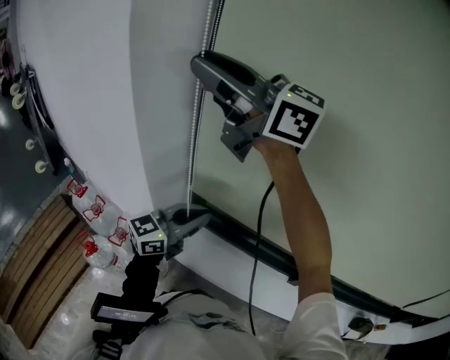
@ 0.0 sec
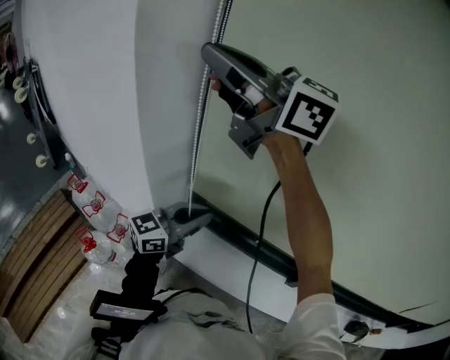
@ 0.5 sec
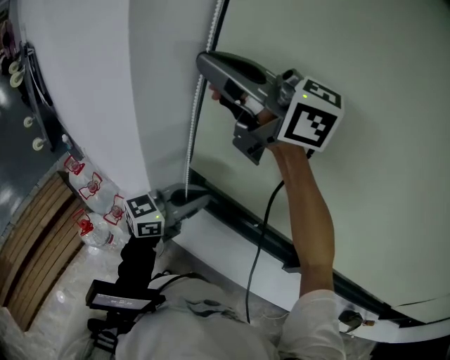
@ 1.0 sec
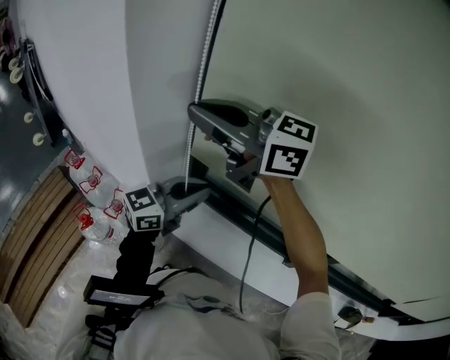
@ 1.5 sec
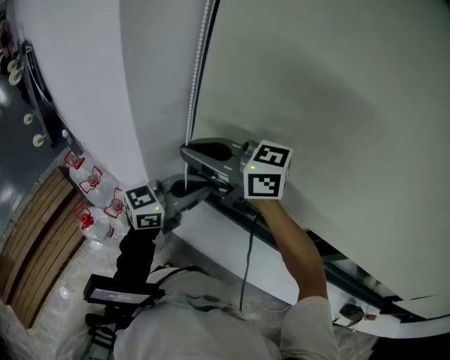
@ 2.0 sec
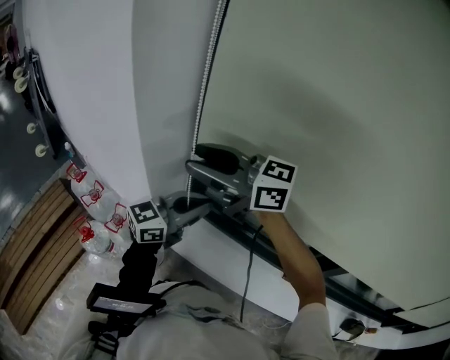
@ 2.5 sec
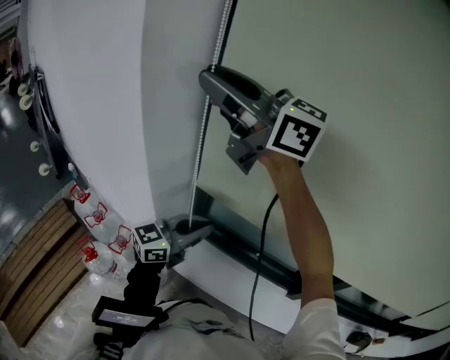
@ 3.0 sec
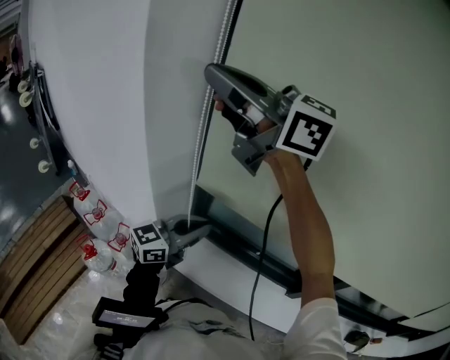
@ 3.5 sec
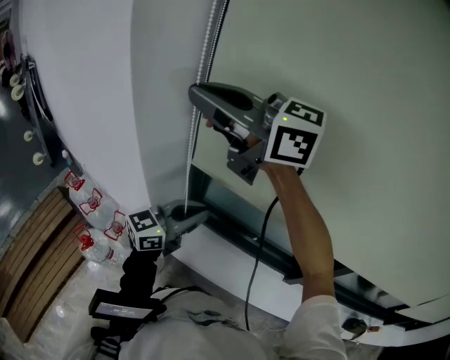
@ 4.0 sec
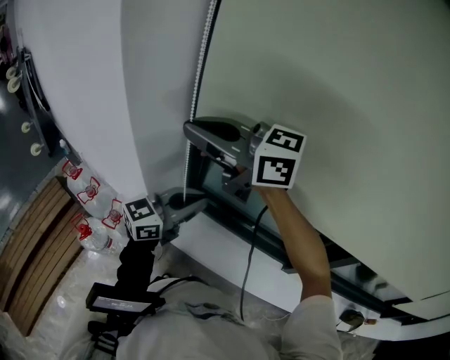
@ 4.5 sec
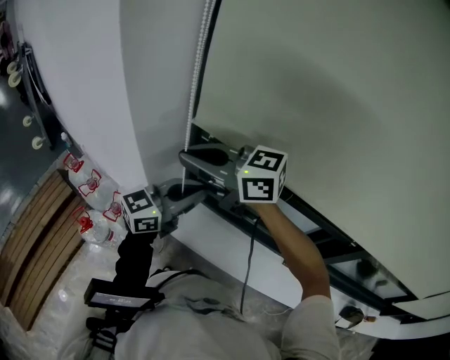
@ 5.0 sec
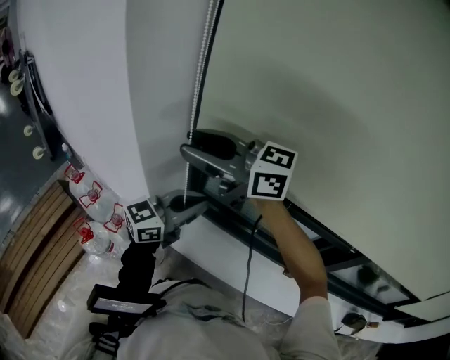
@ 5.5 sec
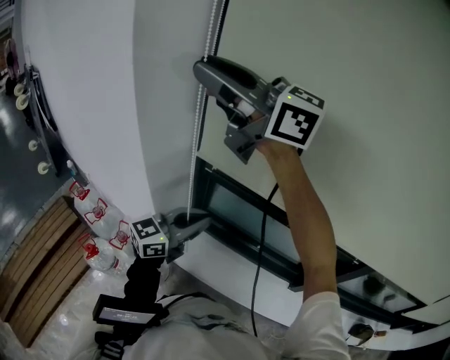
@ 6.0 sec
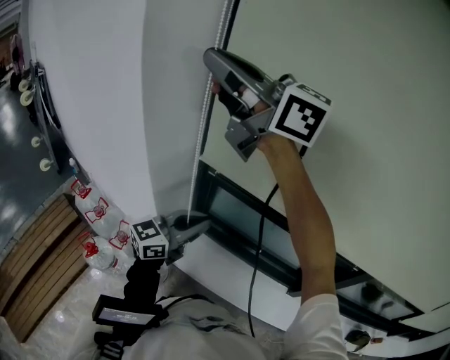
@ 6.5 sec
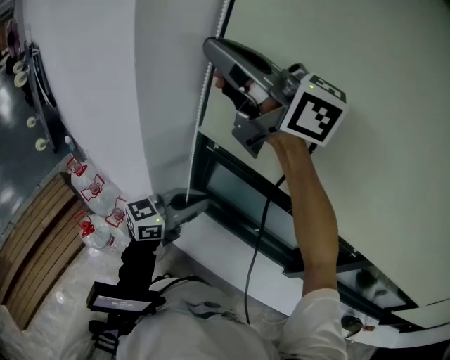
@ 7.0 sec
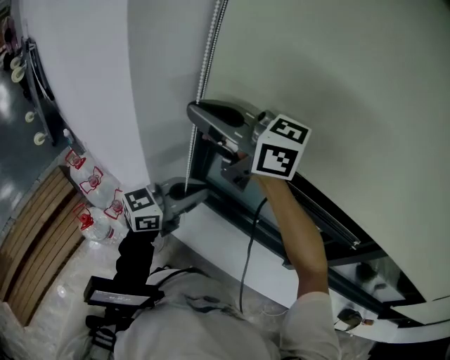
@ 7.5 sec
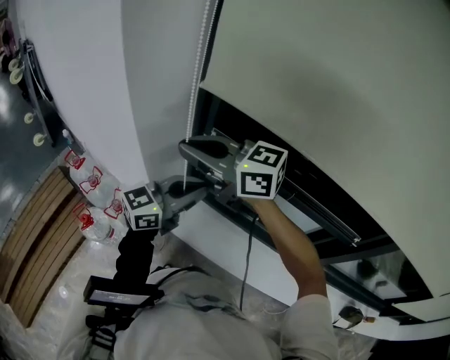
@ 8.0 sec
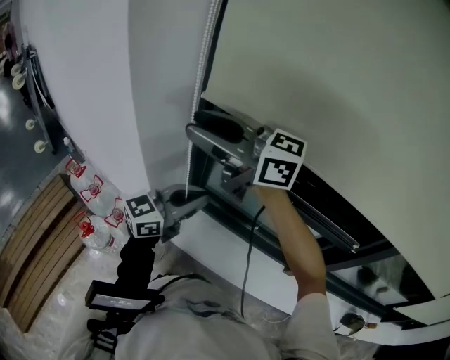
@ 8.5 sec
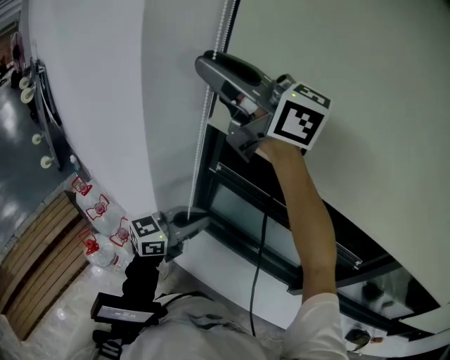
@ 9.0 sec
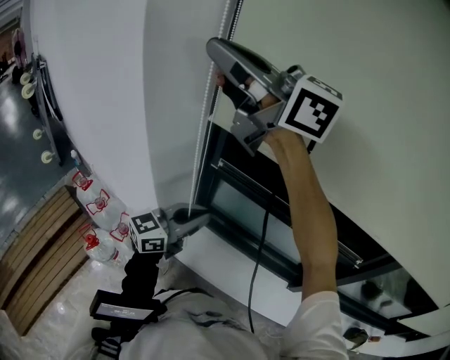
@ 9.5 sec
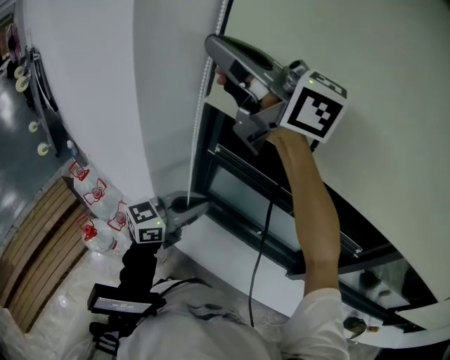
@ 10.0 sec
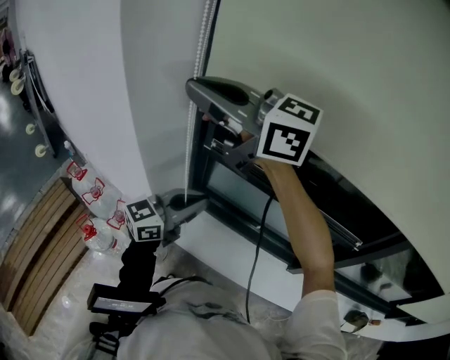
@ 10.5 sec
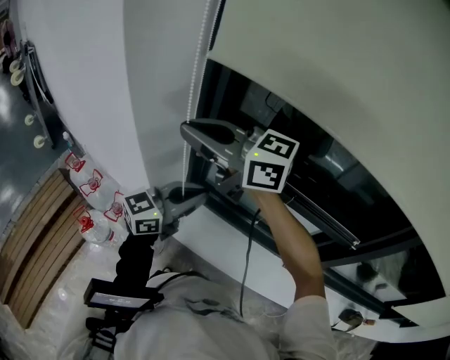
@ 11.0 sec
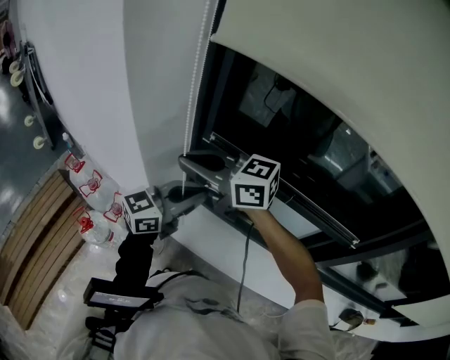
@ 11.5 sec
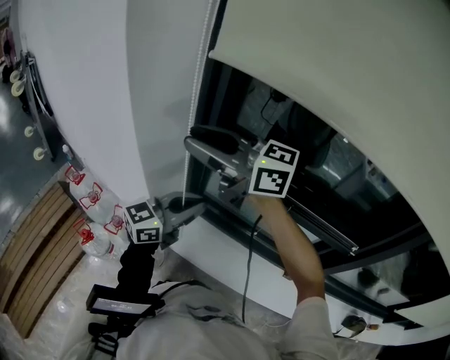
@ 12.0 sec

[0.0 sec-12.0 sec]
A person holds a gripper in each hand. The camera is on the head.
0.0 sec to 2.0 sec: The right gripper travels downward by some 25 cm, swivels about 30 degrees, and closes up.
2.0 sec to 4.0 sec: The right gripper is displaced upward by roughly 15 cm, and opens, then closes again.
4.0 sec to 6.0 sec: The right gripper goes downward and returns, approximately 20 cm each way, and opens up.
6.0 sec to 8.0 sec: The right gripper heads downward, covering approximately 25 cm, rotates roughly 20 degrees, and closes up.
8.0 sec to 10.0 sec: The right gripper shifts roughly 25 cm upward, swivels approximately 20 degrees, and opens, then closes again.
10.0 sec to 12.0 sec: The right gripper shifts roughly 15 cm downward, and opens.

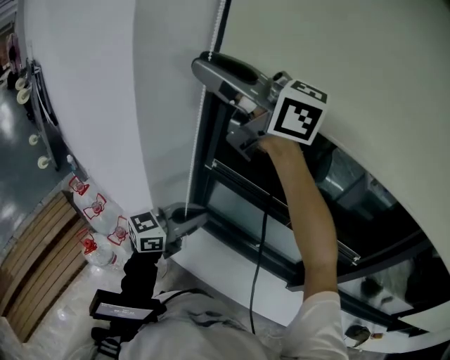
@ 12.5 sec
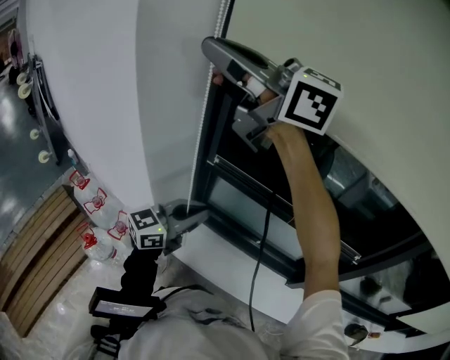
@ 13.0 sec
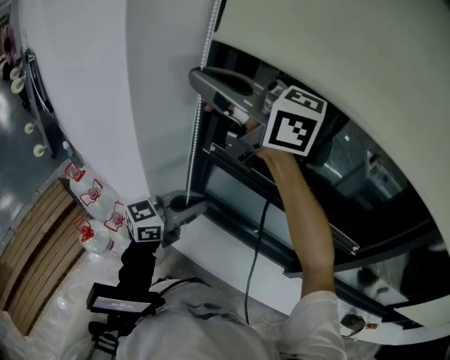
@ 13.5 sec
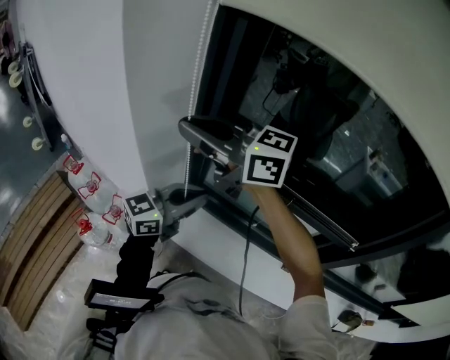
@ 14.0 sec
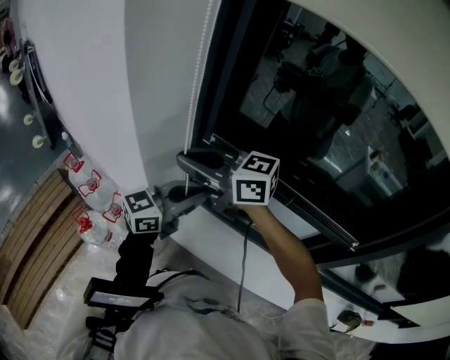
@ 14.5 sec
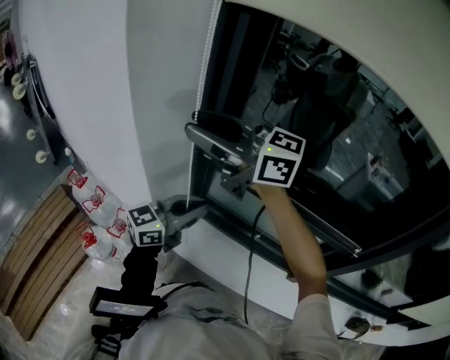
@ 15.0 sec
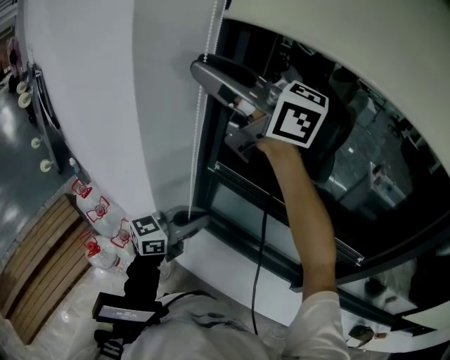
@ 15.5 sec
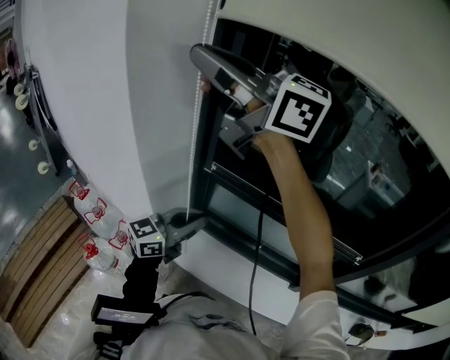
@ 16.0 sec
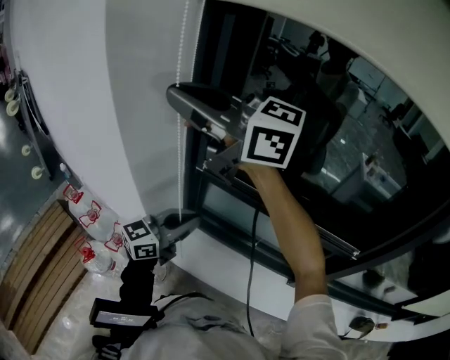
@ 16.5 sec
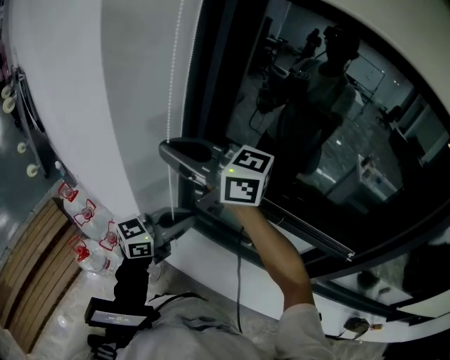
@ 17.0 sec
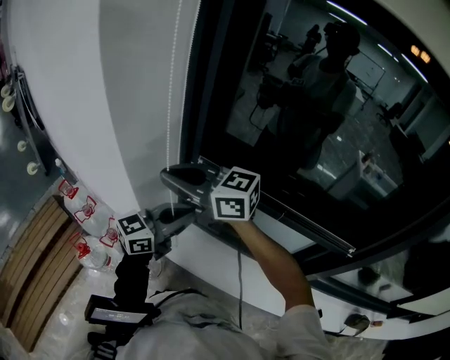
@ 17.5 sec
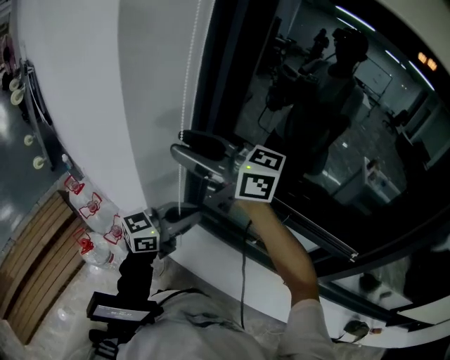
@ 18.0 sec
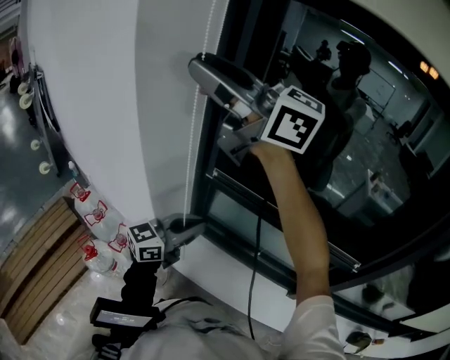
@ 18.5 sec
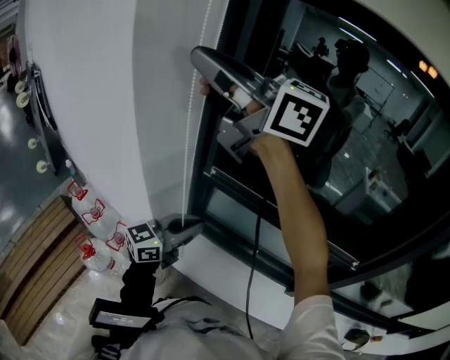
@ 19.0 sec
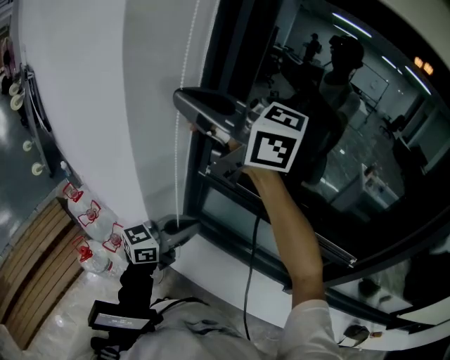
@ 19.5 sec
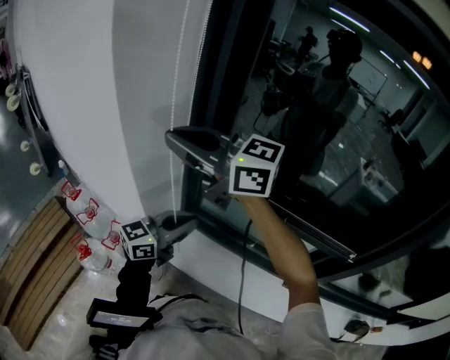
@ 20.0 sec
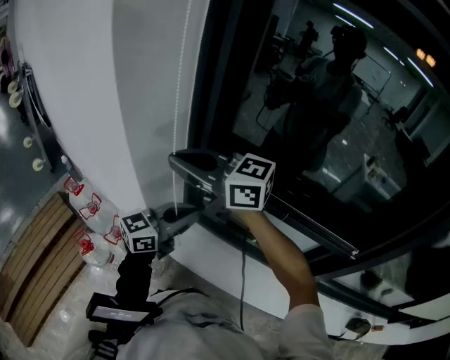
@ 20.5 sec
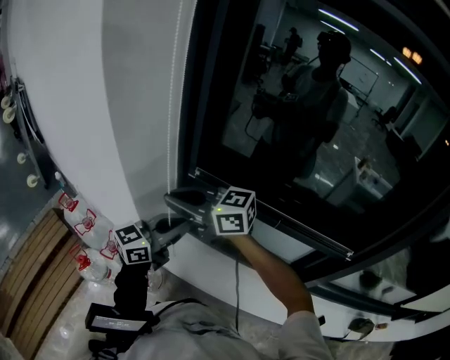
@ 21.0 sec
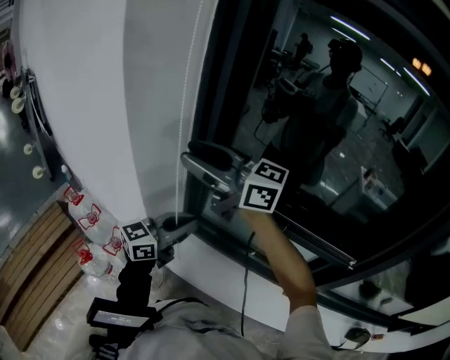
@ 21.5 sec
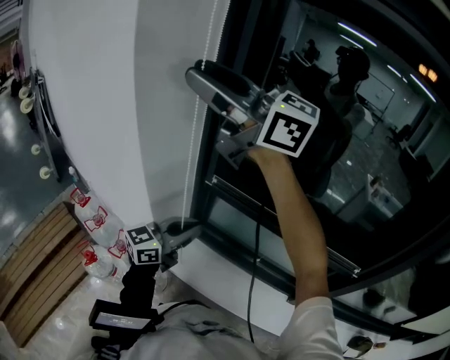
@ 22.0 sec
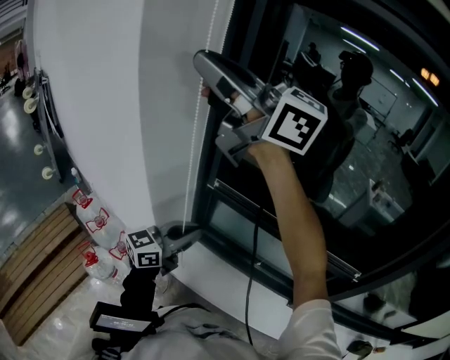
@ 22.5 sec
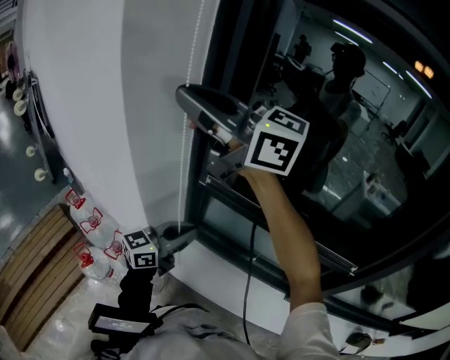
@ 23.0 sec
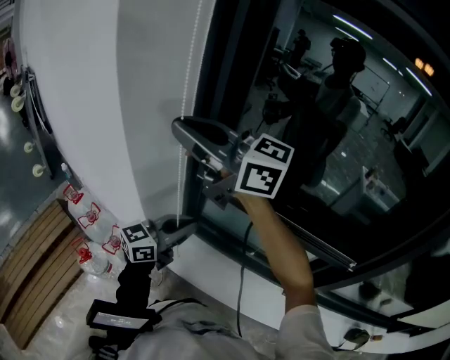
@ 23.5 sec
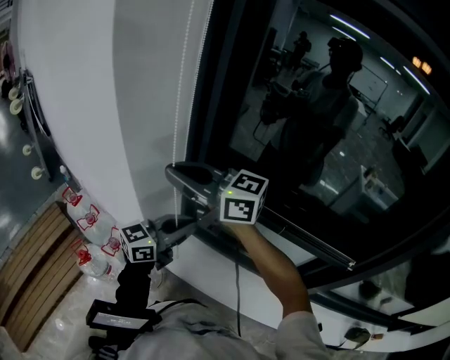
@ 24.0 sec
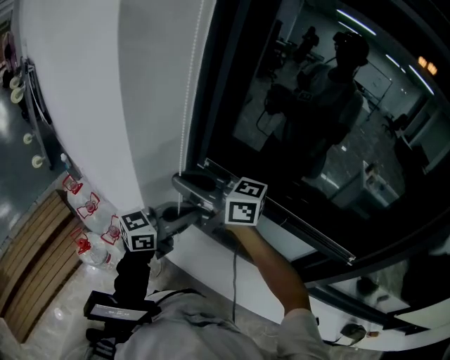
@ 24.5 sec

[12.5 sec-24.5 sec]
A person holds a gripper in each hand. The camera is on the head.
12.5 sec to 14.5 sec: The right gripper moves downward, some 25 cm, swivels roughly 20 degrees, and closes its fingers.
14.5 sec to 16.5 sec: The right gripper goes about 20 cm upward, rotates roughly 20 degrees, and opens and closes again.
16.5 sec to 18.5 sec: The right gripper goes downward and returns, some 20 cm each way, and opens.
18.5 sec to 20.5 sec: The right gripper is displaced downward by some 20 cm, swivels approximately 20 degrees, and closes its fingers.
20.5 sec to 22.5 sec: The right gripper is displaced upward by about 25 cm, rotates some 20 degrees, and opens, then closes once more.
22.5 sec to 24.5 sec: The right gripper heads downward, covering some 30 cm, and rotates roughly 30 degrees.

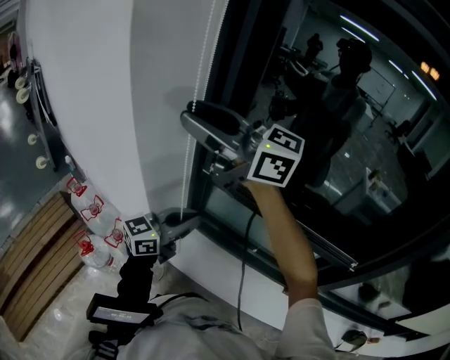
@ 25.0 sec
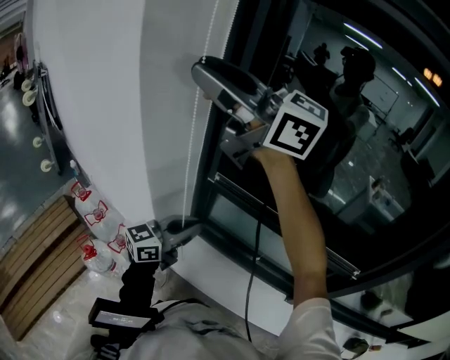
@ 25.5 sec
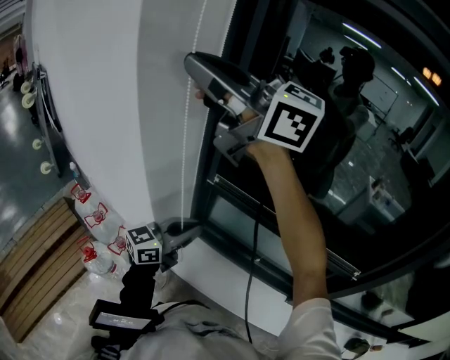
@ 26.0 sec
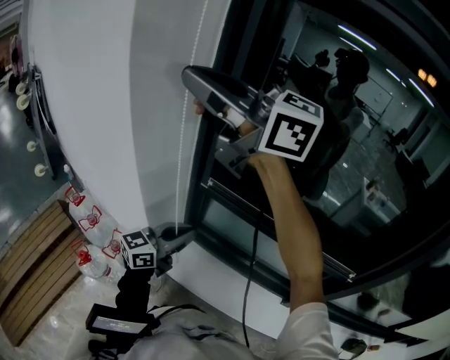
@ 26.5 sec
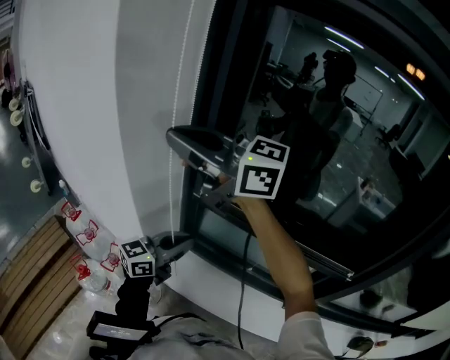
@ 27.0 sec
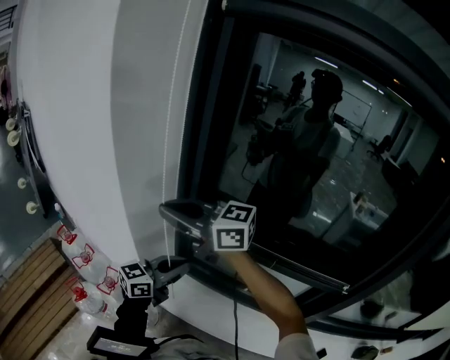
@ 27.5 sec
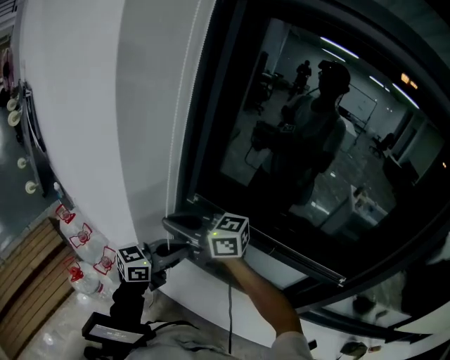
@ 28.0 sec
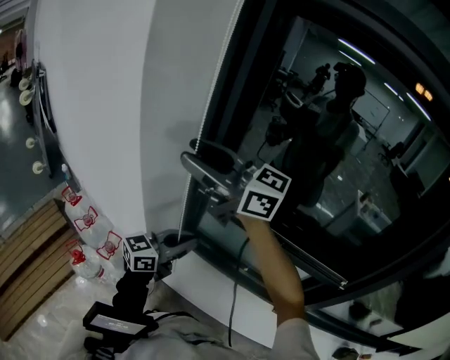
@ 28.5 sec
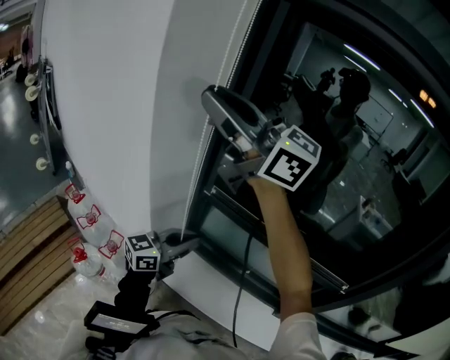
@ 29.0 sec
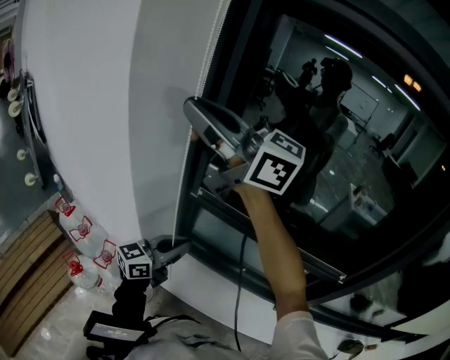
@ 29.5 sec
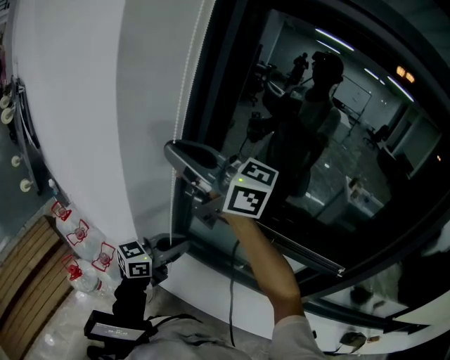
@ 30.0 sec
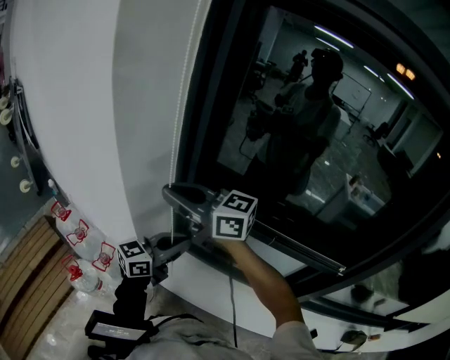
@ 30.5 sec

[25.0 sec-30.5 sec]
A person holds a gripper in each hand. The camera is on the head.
25.0 sec to 27.0 sec: The right gripper travels upward and back again, roughly 10 cm each way, and closes its fingers.
27.0 sec to 28.5 sec: The right gripper travels downward and back again, approximately 20 cm each way, and opens up.
28.5 sec to 30.5 sec: The right gripper travels downward by roughly 10 cm, and closes up.
